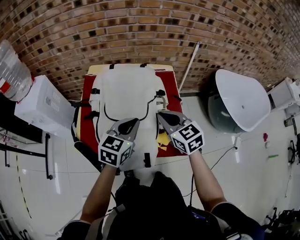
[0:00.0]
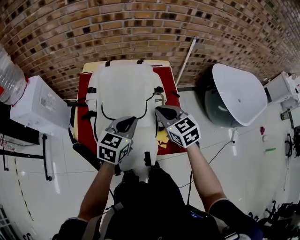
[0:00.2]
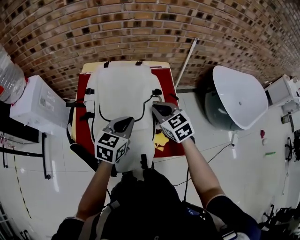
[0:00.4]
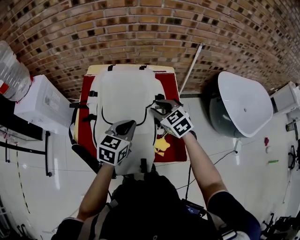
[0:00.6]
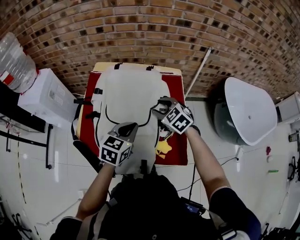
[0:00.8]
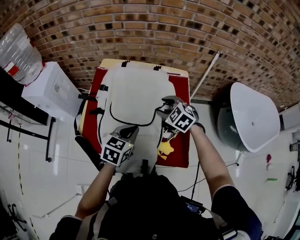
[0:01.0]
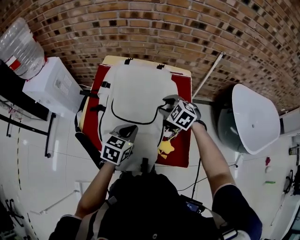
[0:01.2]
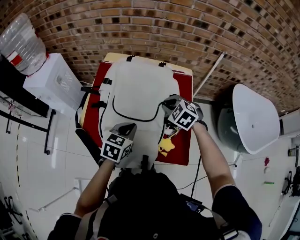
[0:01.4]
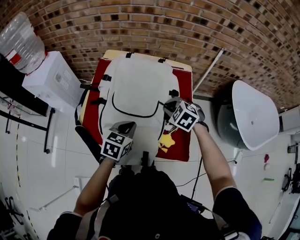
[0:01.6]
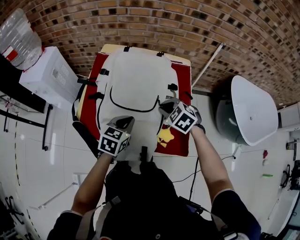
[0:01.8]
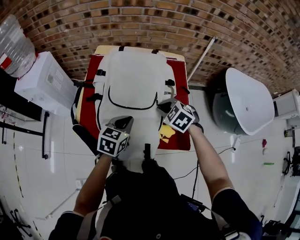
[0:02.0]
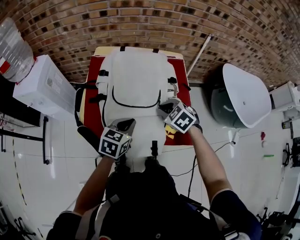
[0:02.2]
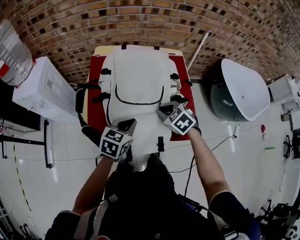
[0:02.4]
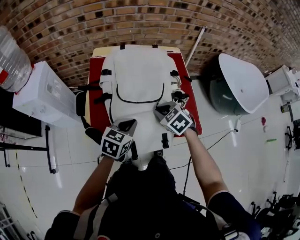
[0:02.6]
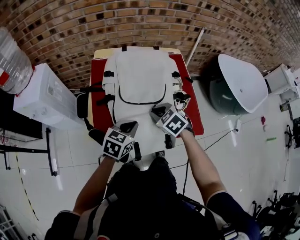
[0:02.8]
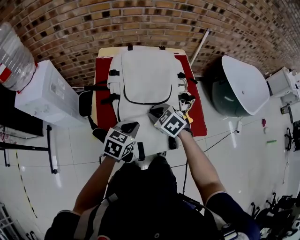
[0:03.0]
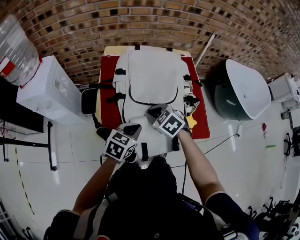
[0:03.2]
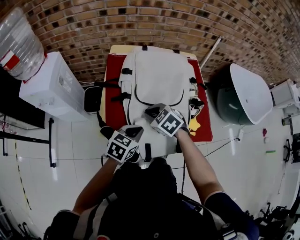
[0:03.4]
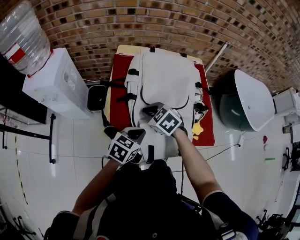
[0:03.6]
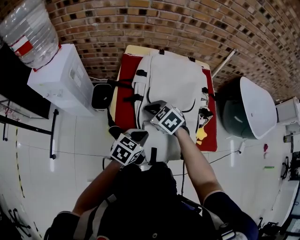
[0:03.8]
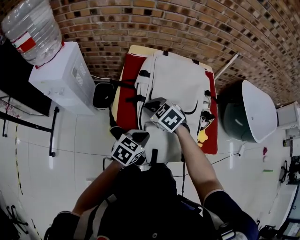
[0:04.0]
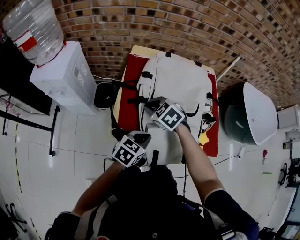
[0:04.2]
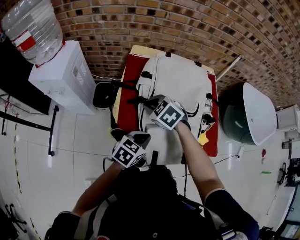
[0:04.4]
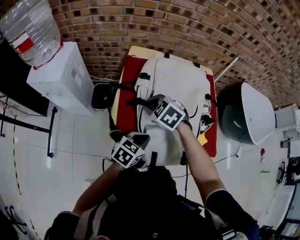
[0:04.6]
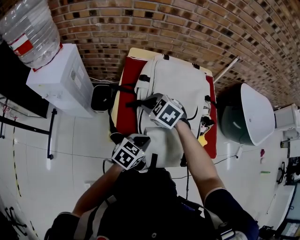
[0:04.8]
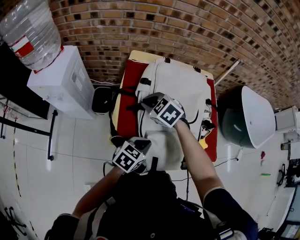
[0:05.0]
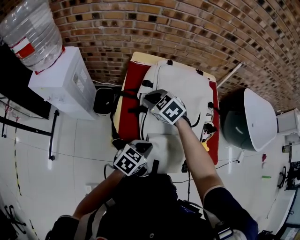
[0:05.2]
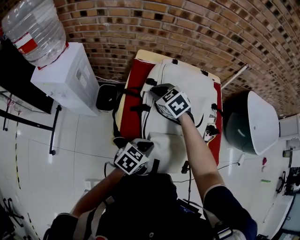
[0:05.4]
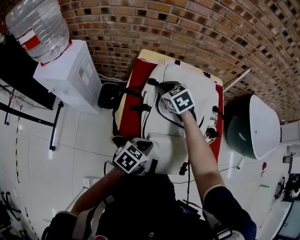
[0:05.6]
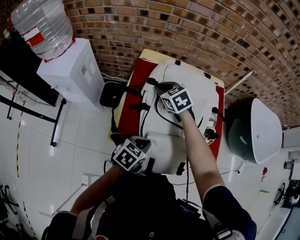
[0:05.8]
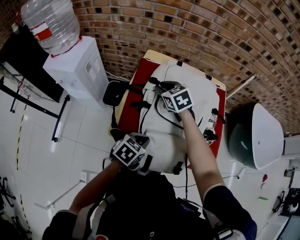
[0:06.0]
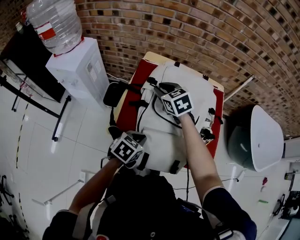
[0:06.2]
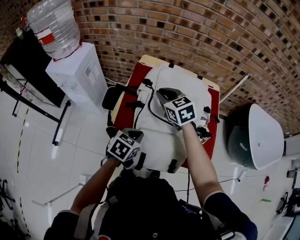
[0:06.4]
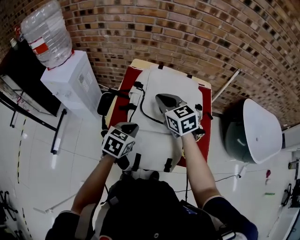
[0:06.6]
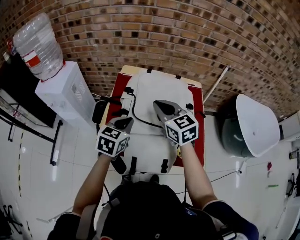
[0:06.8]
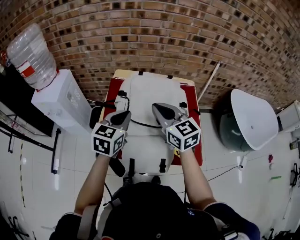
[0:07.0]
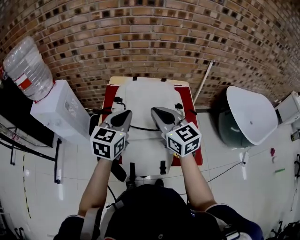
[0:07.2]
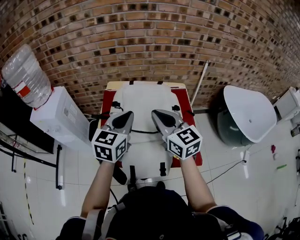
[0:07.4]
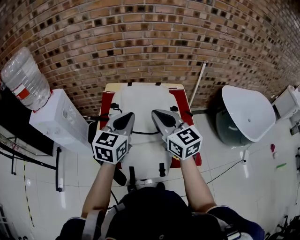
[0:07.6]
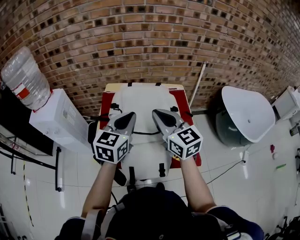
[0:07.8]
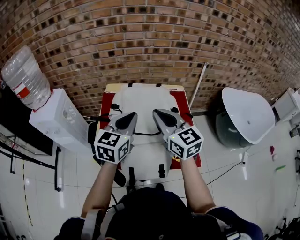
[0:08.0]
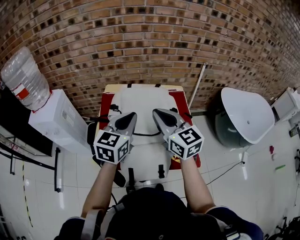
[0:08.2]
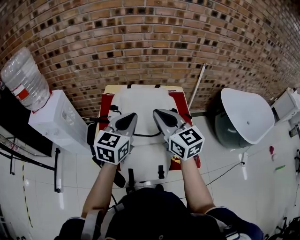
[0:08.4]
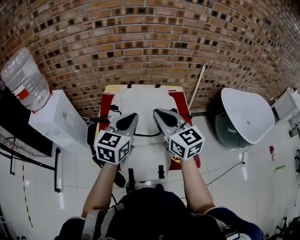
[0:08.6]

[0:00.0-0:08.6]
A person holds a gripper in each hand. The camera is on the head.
0:00.0 to 0:01.4: The right gripper travels downward and forward by approximately 15 cm, changes its angle by about 50 degrees, and opens and closes again; the left gripper goes roughly 10 cm downward.
0:01.4 to 0:02.8: The right gripper moves backward and to the left, approximately 15 cm, and changes its angle by some 30 degrees, while the left gripper goes some 10 cm to the left and backward.
0:02.8 to 0:04.4: The left gripper heads to the left, covering roughly 5 cm. Meanwhile the right gripper heads to the left, covering about 20 cm.
0:04.4 to 0:05.8: The right gripper travels forward by some 15 cm.
0:05.8 to 0:07.2: The right gripper moves upward, backward and to the right, about 25 cm, and tips its fingers upward by roughly 40 degrees, while the left gripper heads upward and forward, covering approximately 25 cm, and swivels roughly 40 degrees.
0:07.2 to 0:08.6: The left gripper moves roughly 5 cm.

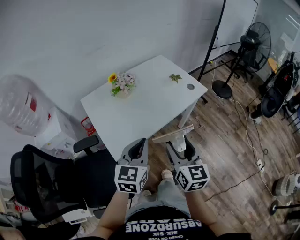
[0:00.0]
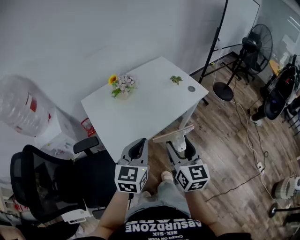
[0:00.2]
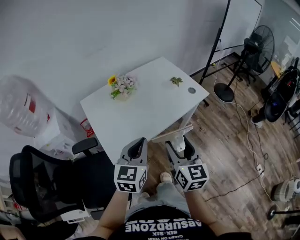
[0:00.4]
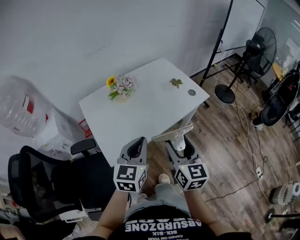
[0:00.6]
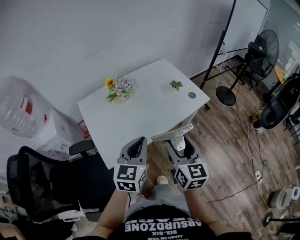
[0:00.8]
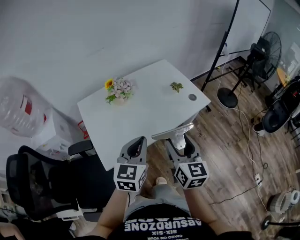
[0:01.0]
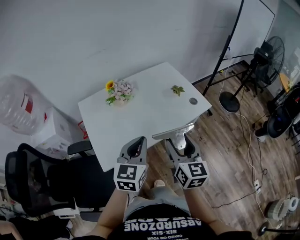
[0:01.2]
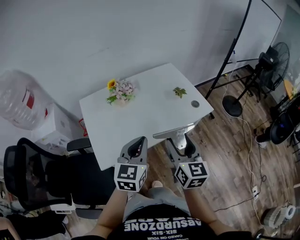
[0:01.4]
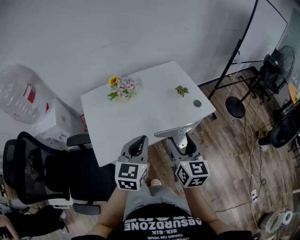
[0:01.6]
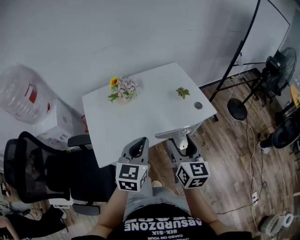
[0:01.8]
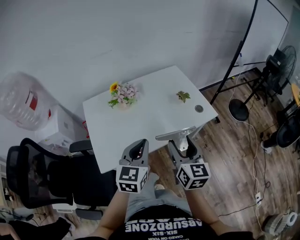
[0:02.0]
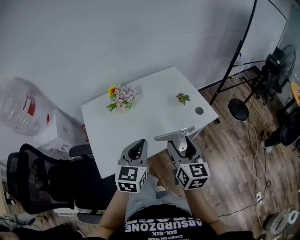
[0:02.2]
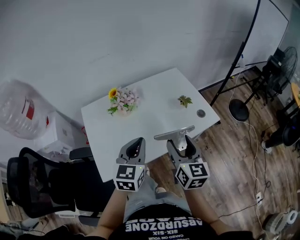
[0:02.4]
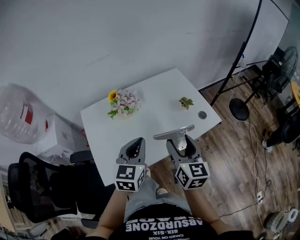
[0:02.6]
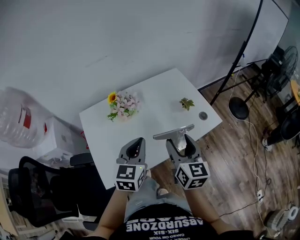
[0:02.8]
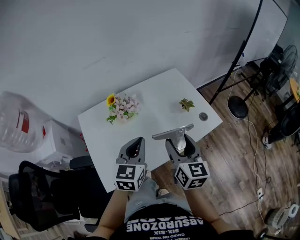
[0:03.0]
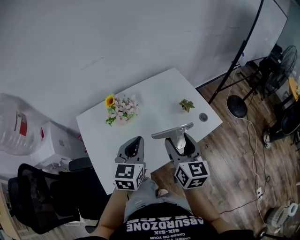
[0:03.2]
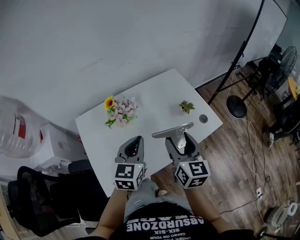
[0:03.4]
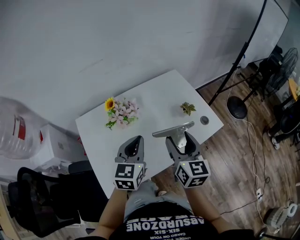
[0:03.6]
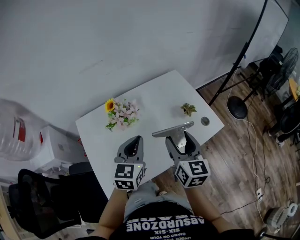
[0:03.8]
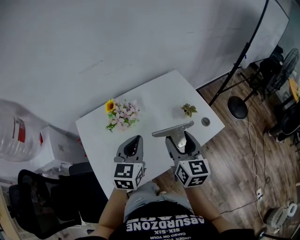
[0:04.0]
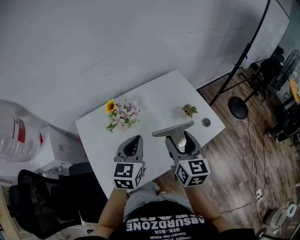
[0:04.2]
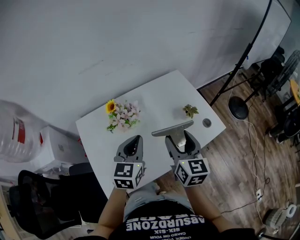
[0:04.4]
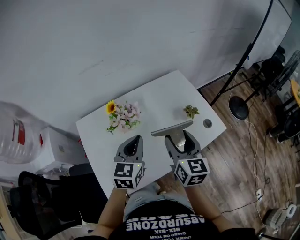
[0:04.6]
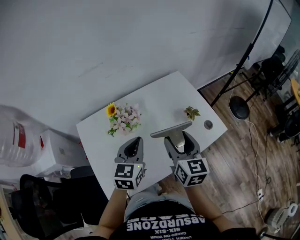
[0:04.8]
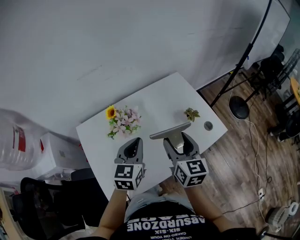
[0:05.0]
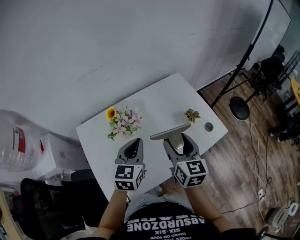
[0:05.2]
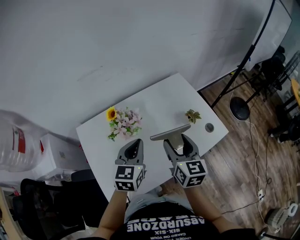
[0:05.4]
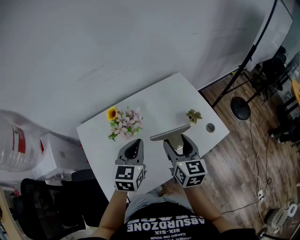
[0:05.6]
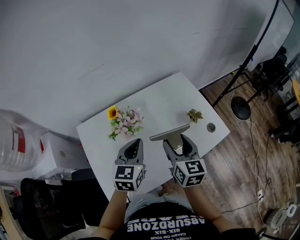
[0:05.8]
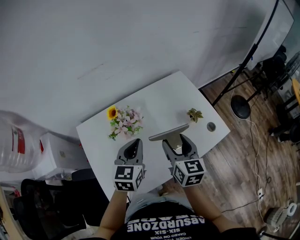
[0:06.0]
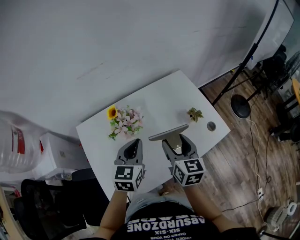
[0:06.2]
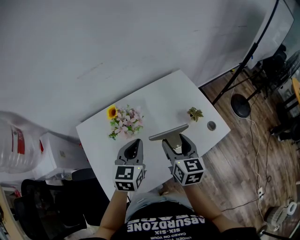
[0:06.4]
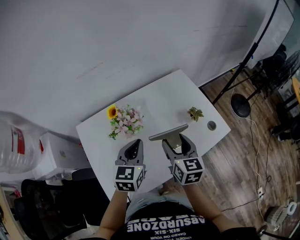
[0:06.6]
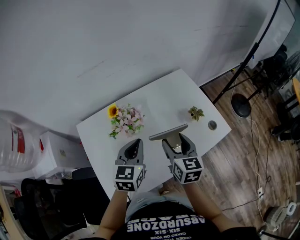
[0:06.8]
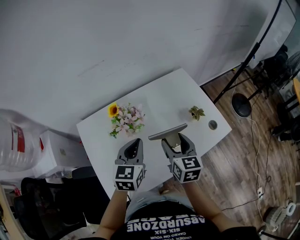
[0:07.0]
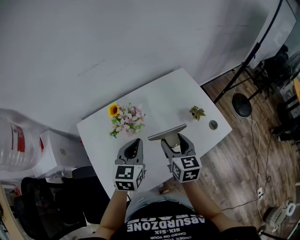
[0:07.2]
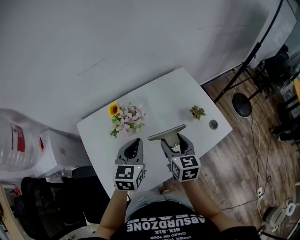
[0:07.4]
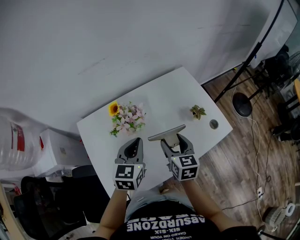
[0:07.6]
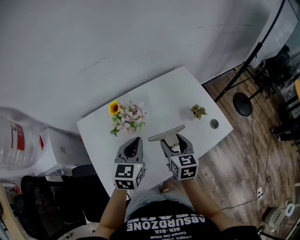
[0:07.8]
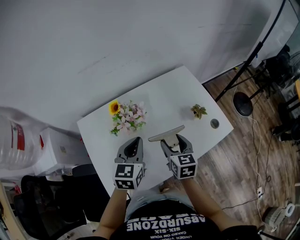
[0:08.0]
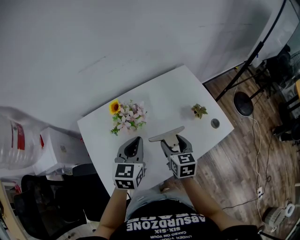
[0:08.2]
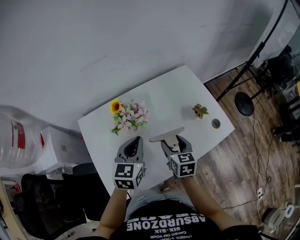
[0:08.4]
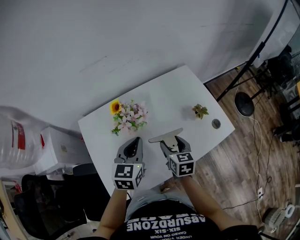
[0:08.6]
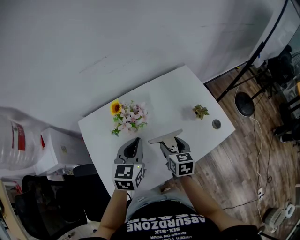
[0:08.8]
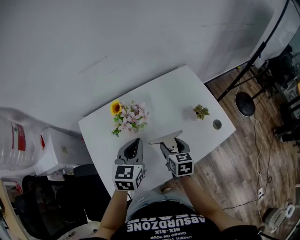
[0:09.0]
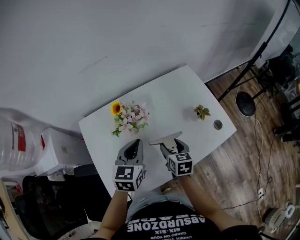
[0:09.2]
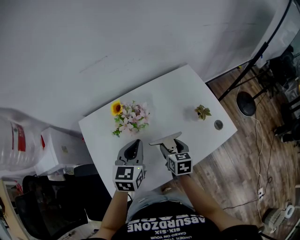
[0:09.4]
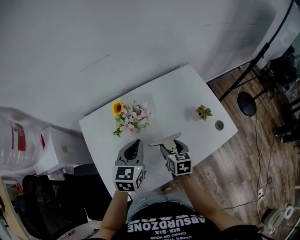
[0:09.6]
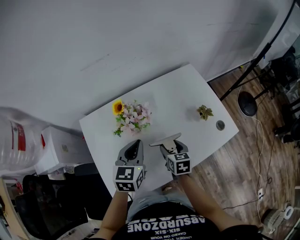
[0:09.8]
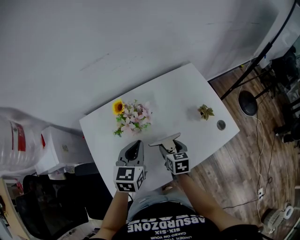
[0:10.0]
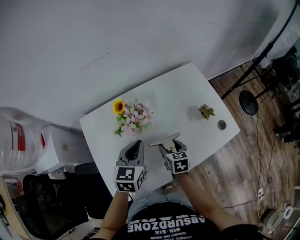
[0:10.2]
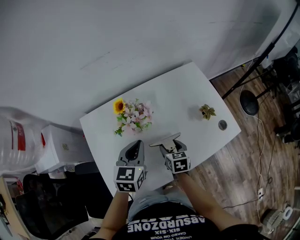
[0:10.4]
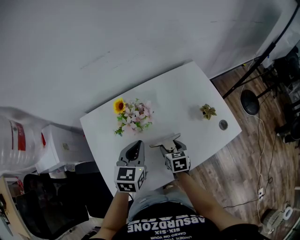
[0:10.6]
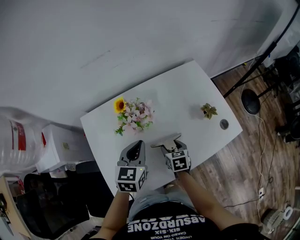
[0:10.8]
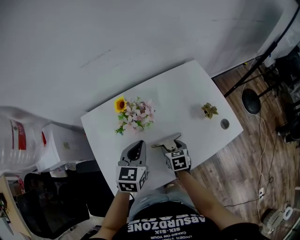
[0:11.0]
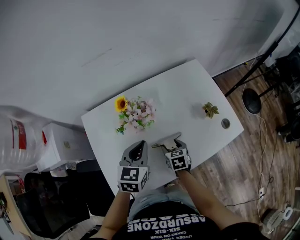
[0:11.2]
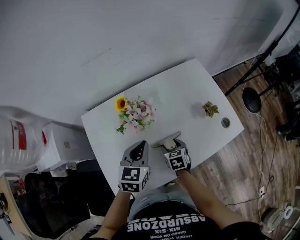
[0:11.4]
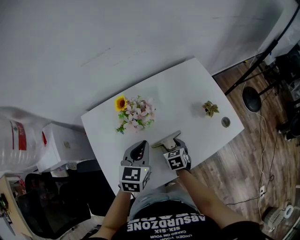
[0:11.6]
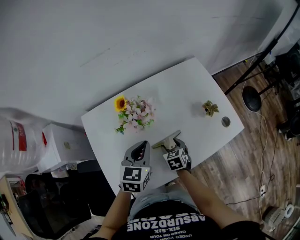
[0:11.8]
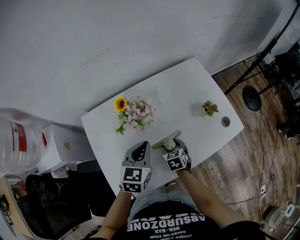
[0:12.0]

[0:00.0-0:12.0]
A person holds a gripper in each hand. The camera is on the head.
0:00.0 to 0:01.6: Both grippers move forward and to the right, approximately 15 cm.
0:01.6 to 0:03.0: The grippers both shift forward by roughly 15 cm.
0:03.0 to 0:04.4: The grippers both shift forward by some 10 cm.
0:04.4 to 0:06.0: The left gripper shifts by roughly 5 cm, while the right gripper shifts by some 5 cm.
0:06.0 to 0:07.6: The right gripper travels downward by some 5 cm.
0:07.6 to 0:09.0: The right gripper goes roughly 10 cm downward.
0:09.0 to 0:10.4: The right gripper heads downward, covering roughly 5 cm.
0:10.4 to 0:12.0: The right gripper goes some 5 cm downward.

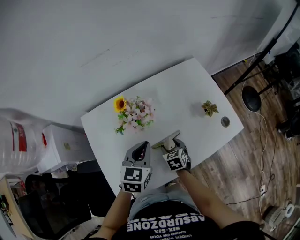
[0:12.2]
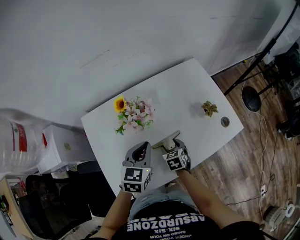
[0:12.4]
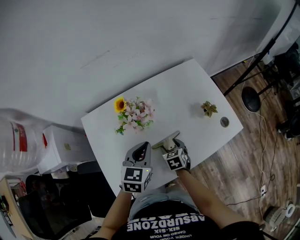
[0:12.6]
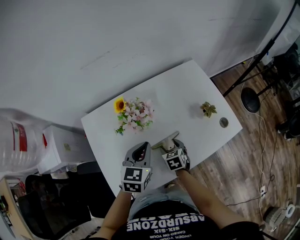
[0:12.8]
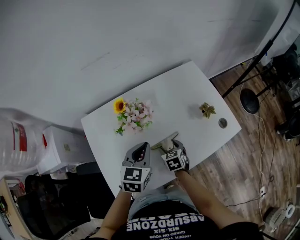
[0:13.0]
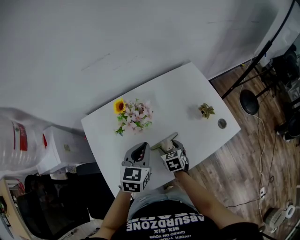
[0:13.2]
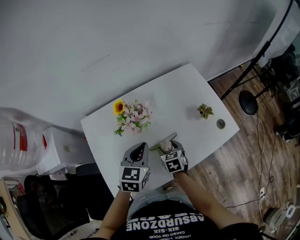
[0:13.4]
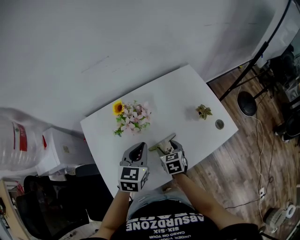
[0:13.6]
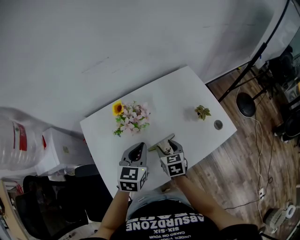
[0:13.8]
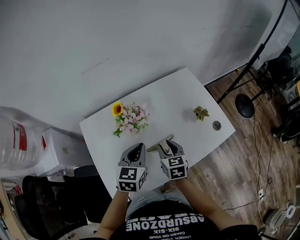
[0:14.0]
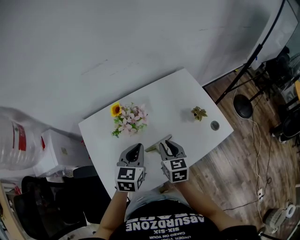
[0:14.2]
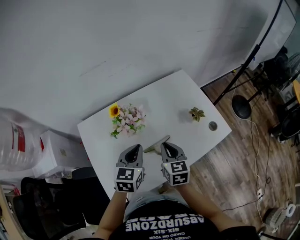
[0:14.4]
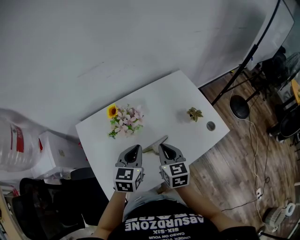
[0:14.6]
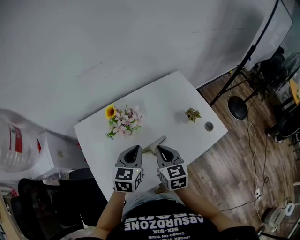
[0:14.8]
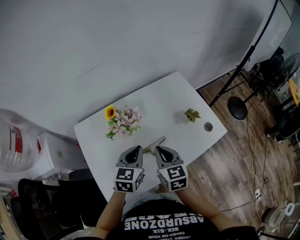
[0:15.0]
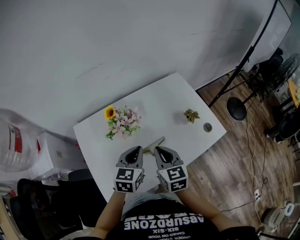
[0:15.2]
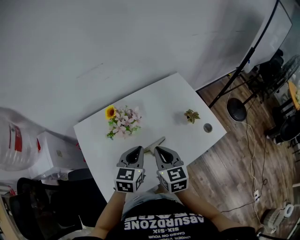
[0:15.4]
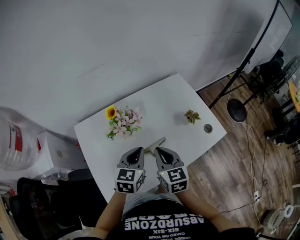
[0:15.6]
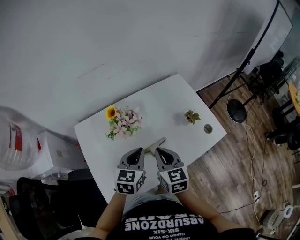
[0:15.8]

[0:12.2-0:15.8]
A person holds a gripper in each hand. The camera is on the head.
0:12.2 to 0:14.0: The right gripper is displaced upward by roughly 15 cm, swivels approximately 20 degrees, and closes its fingers.
0:14.0 to 0:15.8: The right gripper heads upward, covering roughly 10 cm, and closes.
